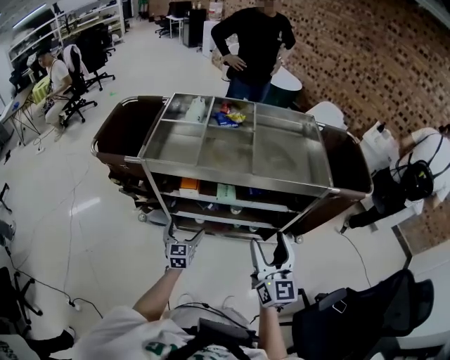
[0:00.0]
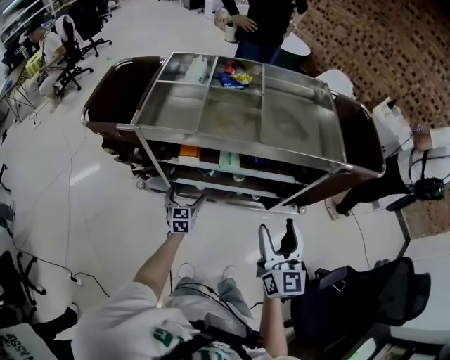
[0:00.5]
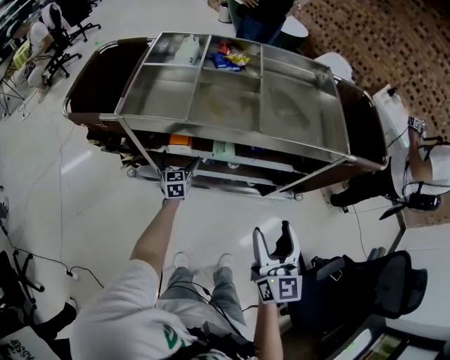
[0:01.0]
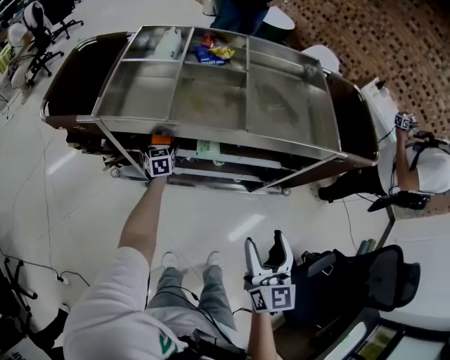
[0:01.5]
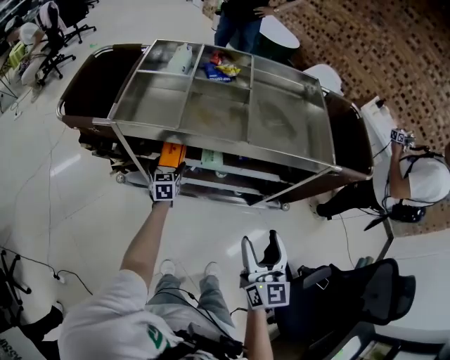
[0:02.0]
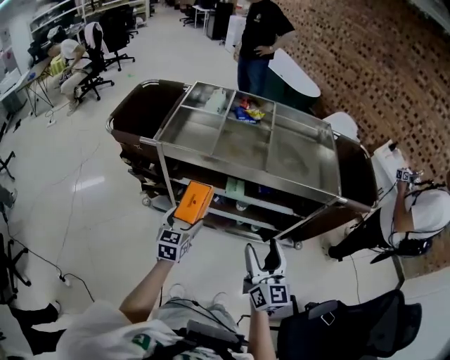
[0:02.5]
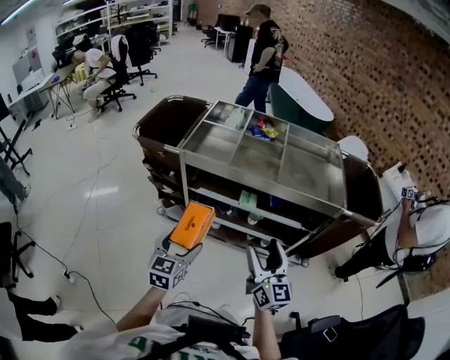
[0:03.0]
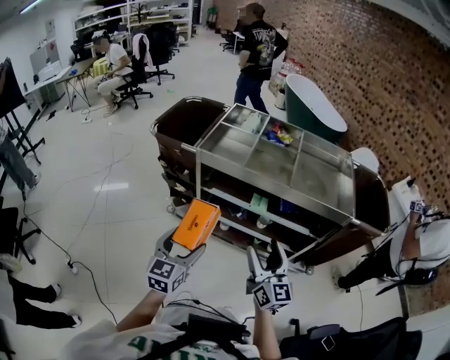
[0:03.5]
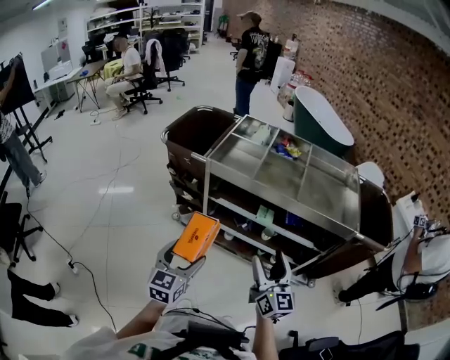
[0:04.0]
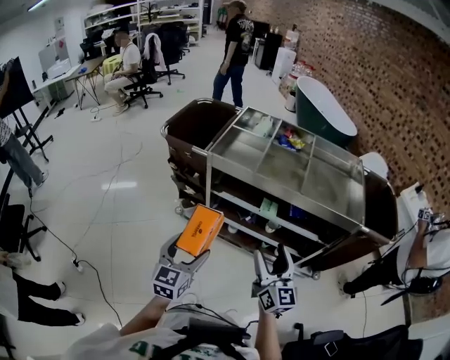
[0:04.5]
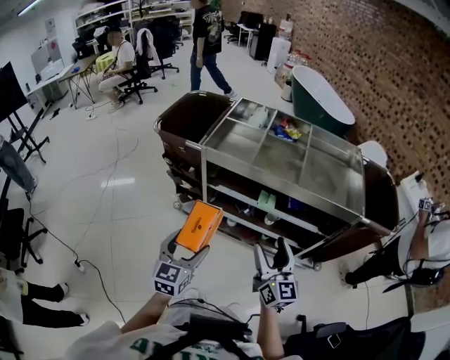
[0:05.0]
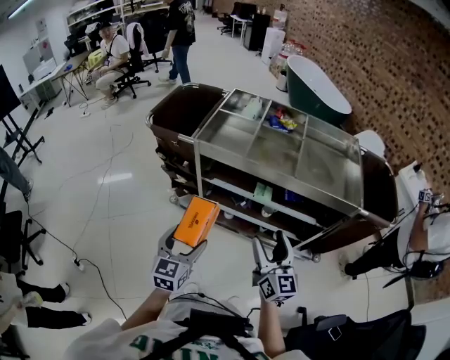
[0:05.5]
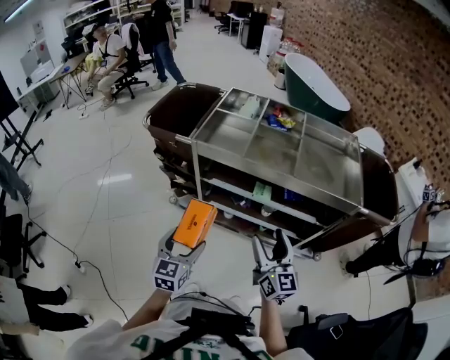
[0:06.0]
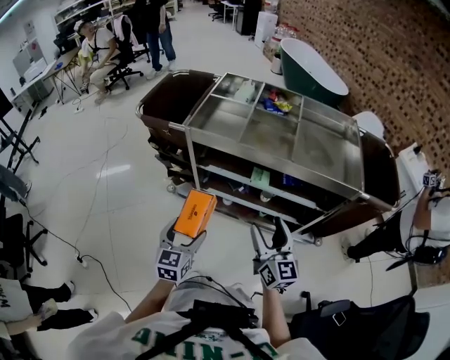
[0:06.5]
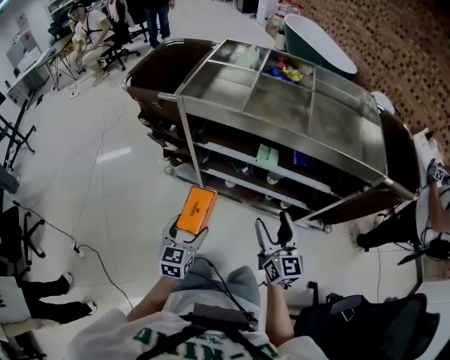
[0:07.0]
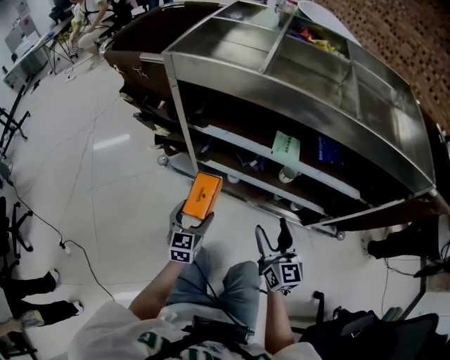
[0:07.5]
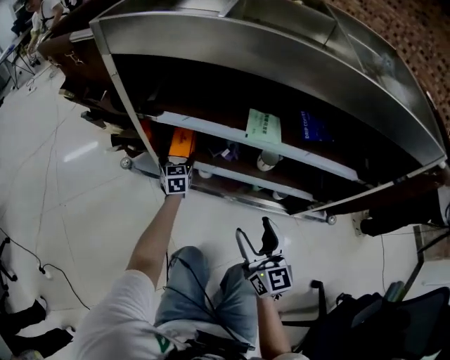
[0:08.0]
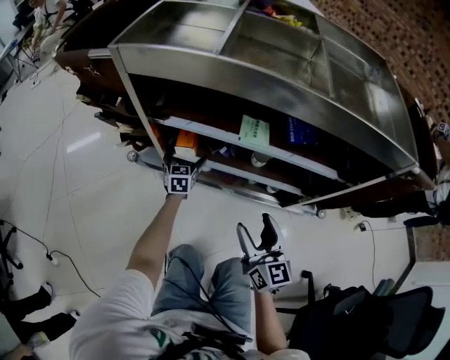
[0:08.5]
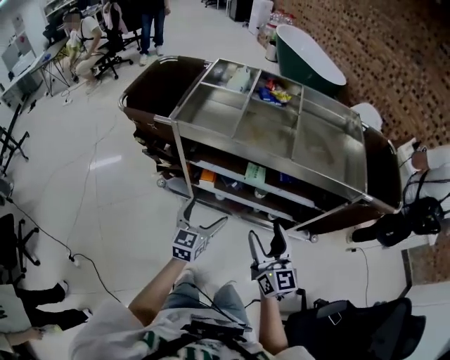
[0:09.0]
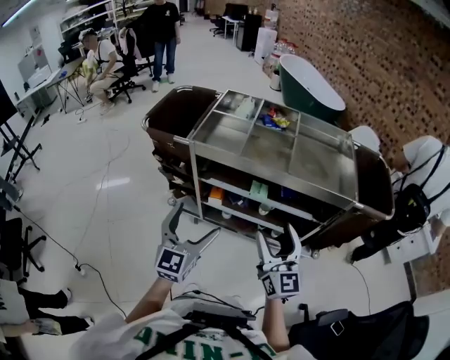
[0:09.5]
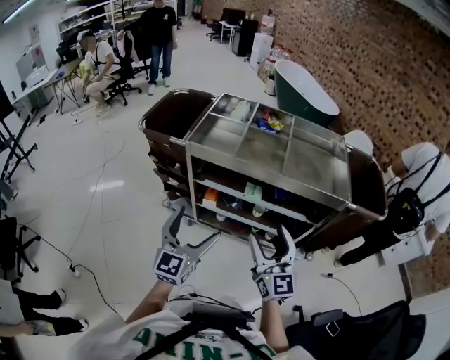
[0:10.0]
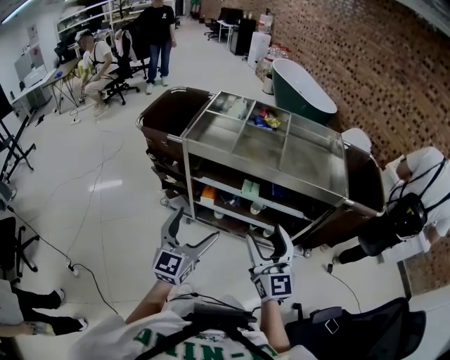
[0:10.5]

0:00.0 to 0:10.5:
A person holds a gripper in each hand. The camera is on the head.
0:00.0 to 0:02.0: The left gripper goes approximately 15 cm forward. The right gripper goes about 5 cm downward.
0:02.0 to 0:04.0: The right gripper travels to the left and upward by approximately 15 cm, and swivels some 20 degrees, while the left gripper moves backward and upward, some 40 cm.
0:04.0 to 0:06.5: The right gripper shifts by about 5 cm. The left gripper travels downward by roughly 5 cm.
0:06.5 to 0:08.5: The left gripper travels downward and forward by roughly 50 cm. The right gripper heads downward, covering some 30 cm.
0:08.5 to 0:10.5: The left gripper shifts about 60 cm upward and backward, and swivels approximately 30 degrees, while the right gripper moves upward, approximately 40 cm, and swivels roughly 20 degrees.

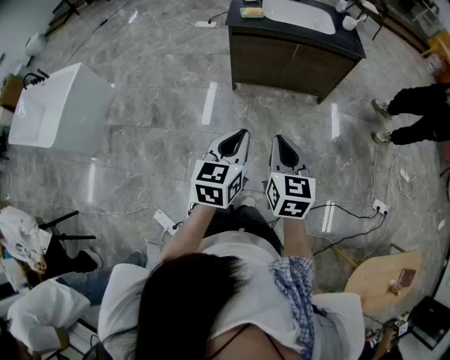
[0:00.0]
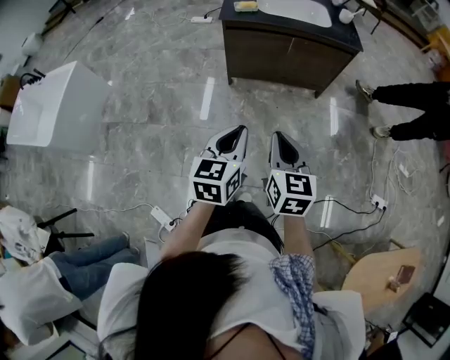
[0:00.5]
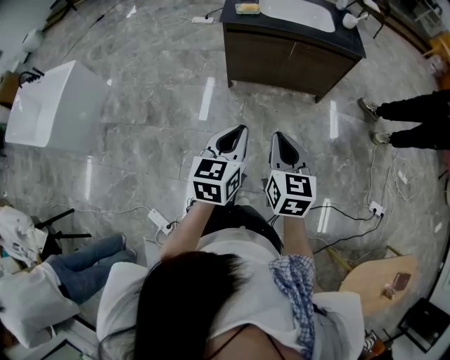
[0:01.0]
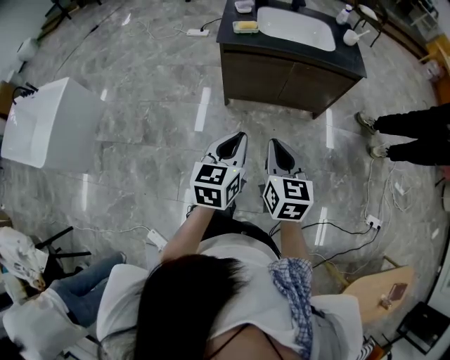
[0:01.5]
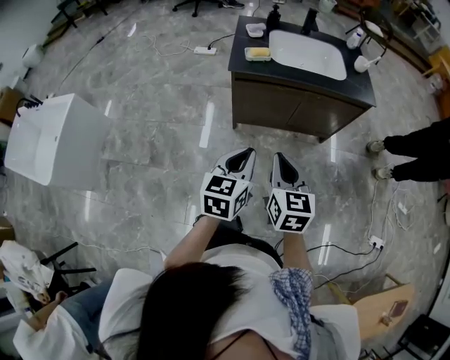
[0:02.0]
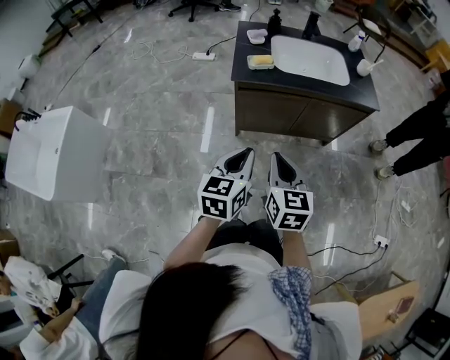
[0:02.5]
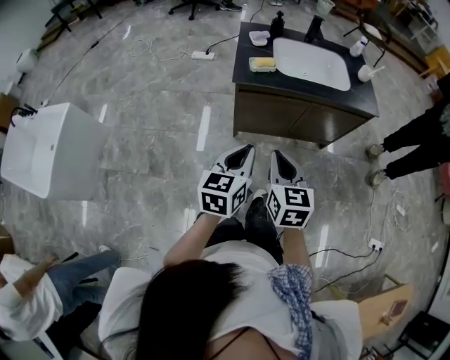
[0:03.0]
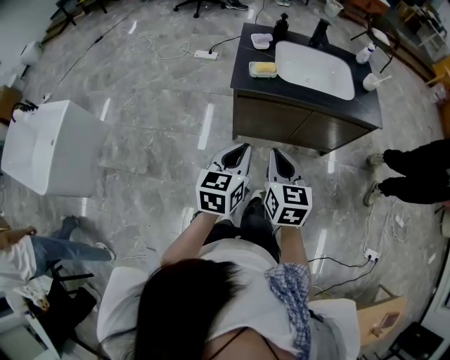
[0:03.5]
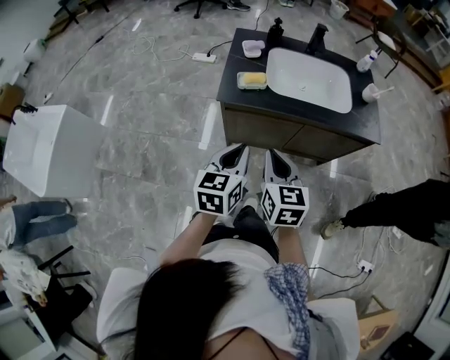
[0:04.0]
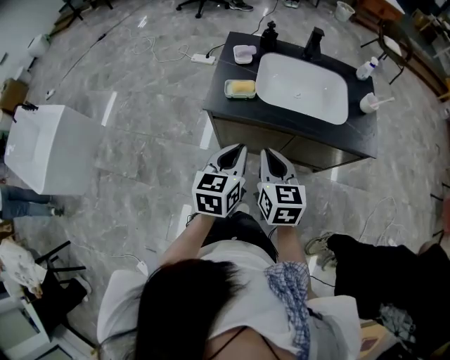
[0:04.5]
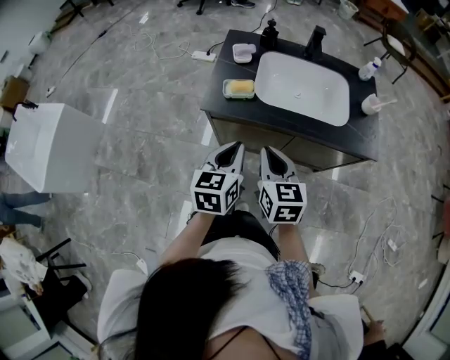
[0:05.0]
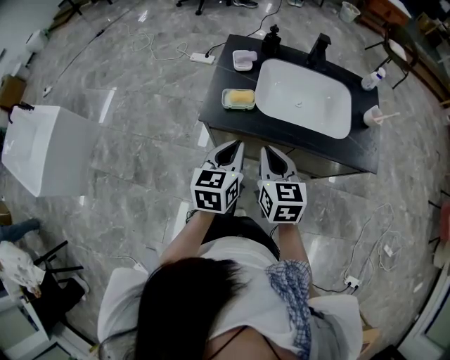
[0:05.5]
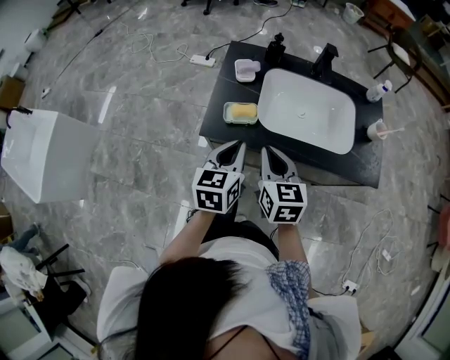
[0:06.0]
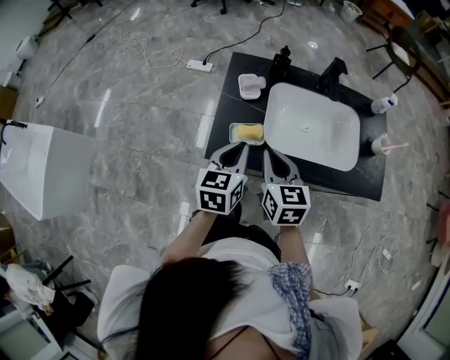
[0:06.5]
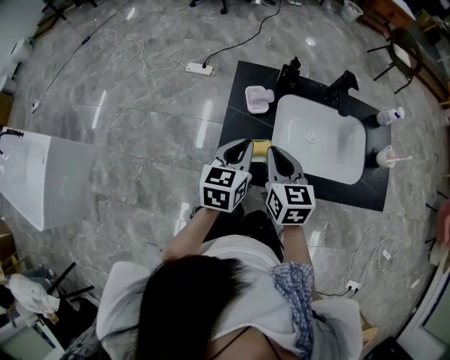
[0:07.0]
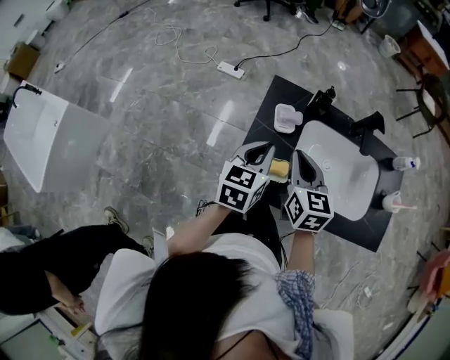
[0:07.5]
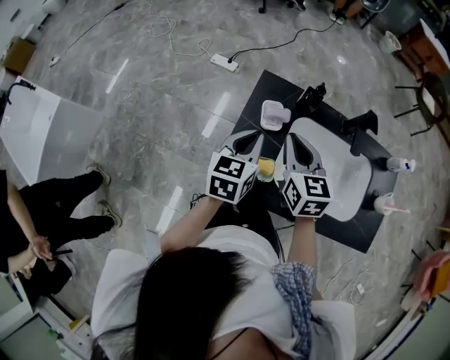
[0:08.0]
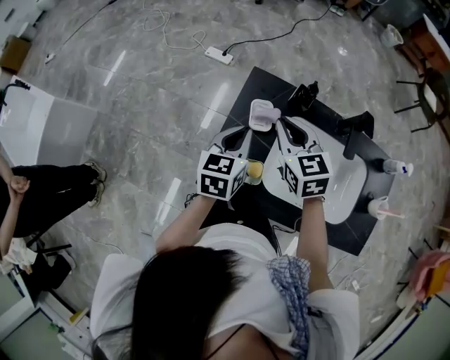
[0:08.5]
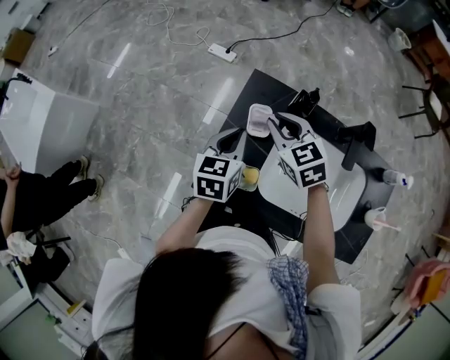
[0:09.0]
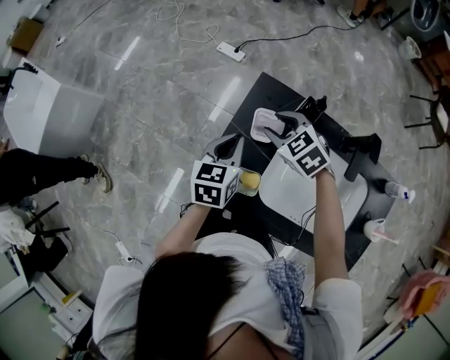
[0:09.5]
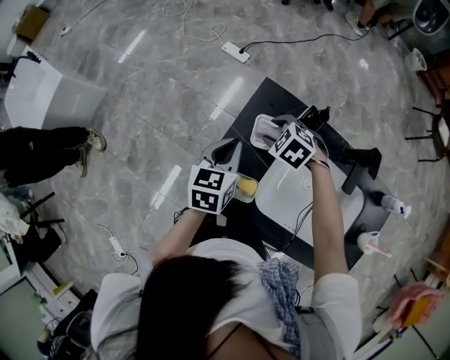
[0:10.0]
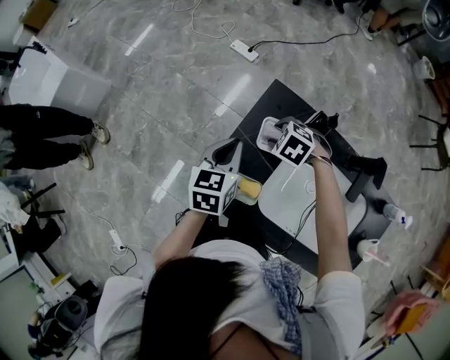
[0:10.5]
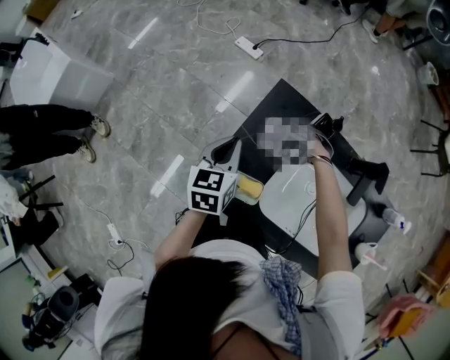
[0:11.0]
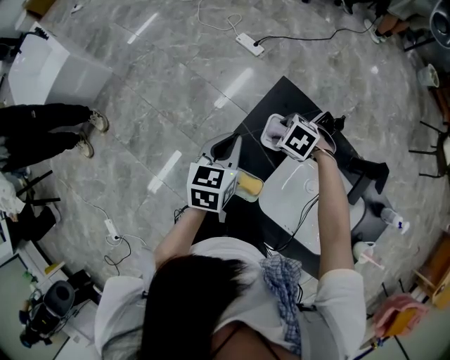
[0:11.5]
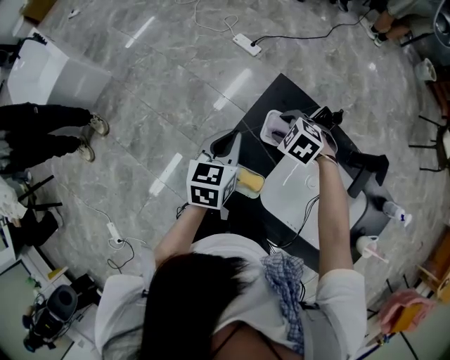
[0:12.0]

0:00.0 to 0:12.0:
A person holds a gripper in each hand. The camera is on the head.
0:00.0 to 0:02.0: The two grippers go some 25 cm forward.
0:02.0 to 0:04.0: Both grippers move forward, roughly 20 cm.
0:04.0 to 0:06.0: The grippers both shift forward by approximately 20 cm.
0:06.0 to 0:08.0: Both grippers travel together forward, roughly 25 cm.
0:08.0 to 0:10.0: The left gripper goes approximately 5 cm downward. Meanwhile the right gripper heads downward, covering about 15 cm, tips its fingers downward by approximately 40 degrees, and opens up.
0:10.0 to 0:12.0: The grippers move only a little.

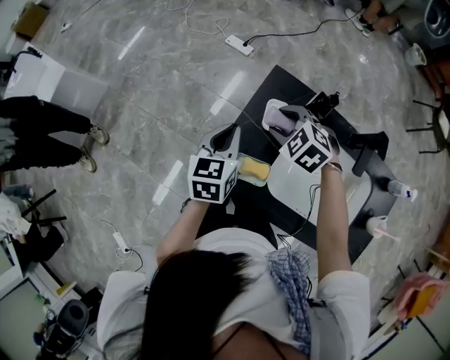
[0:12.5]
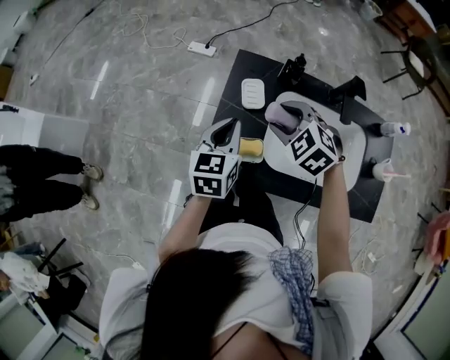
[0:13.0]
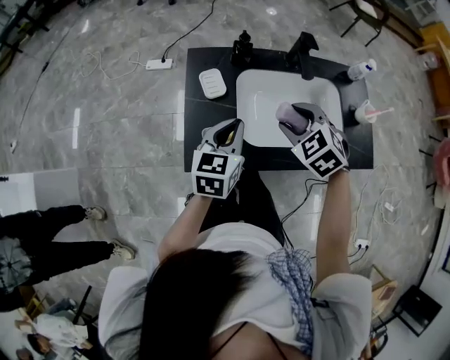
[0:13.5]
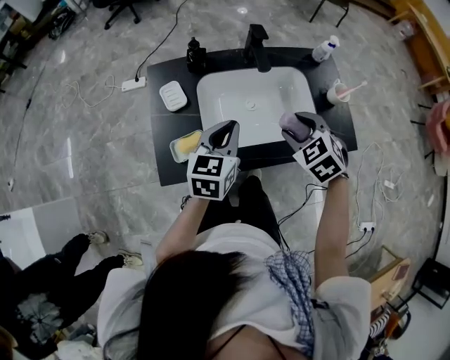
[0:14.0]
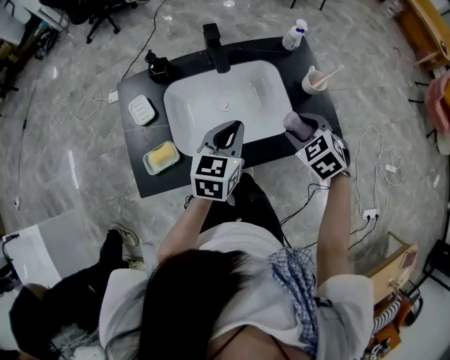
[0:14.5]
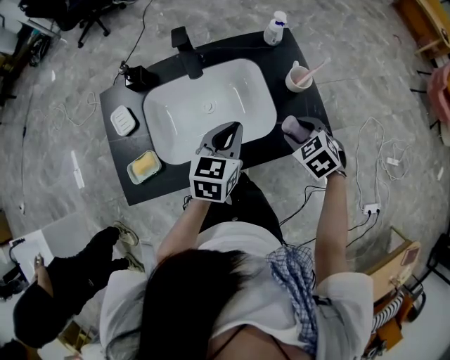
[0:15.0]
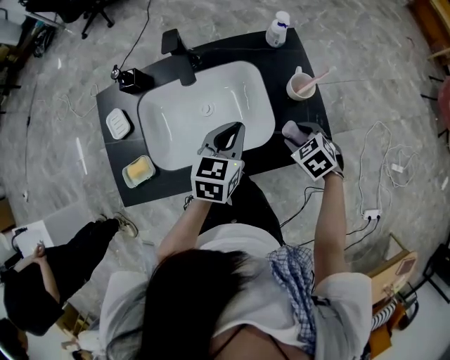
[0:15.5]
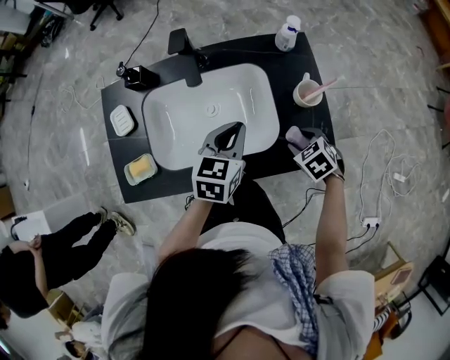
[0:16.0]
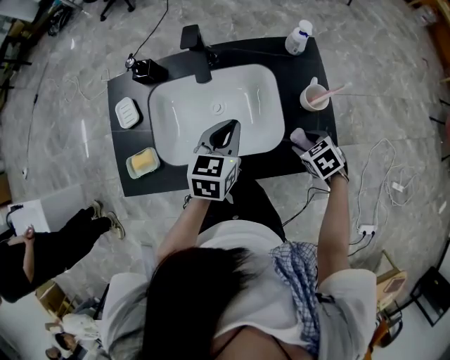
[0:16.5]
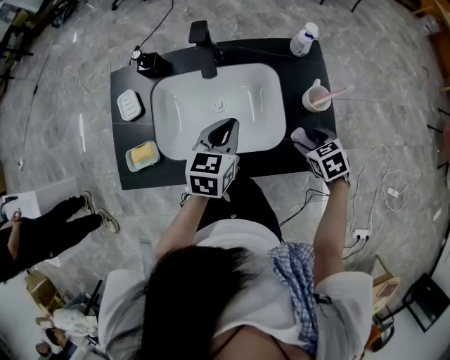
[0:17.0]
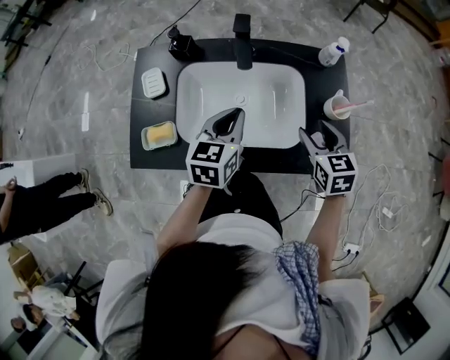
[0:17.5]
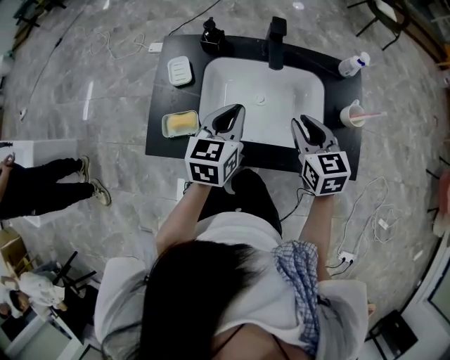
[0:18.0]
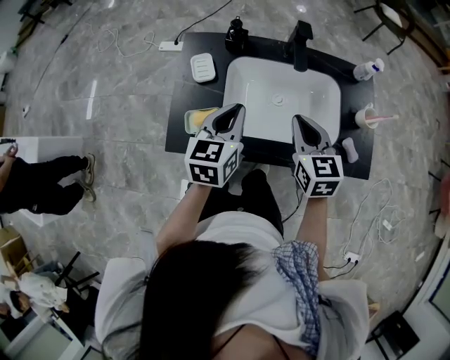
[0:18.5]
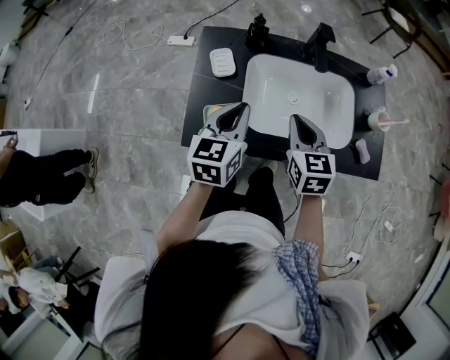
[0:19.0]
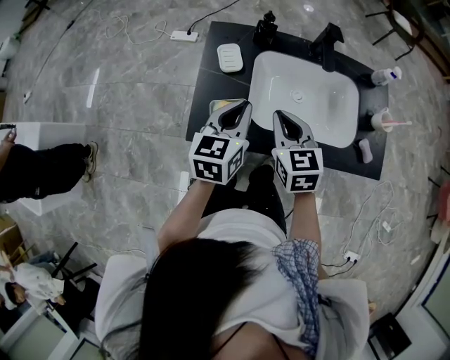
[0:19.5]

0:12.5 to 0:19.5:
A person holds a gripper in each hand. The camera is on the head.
0:12.5 to 0:14.5: The left gripper moves roughly 40 cm, and turns by roughly 50 degrees, while the right gripper ends up approximately 50 cm from where it was, and changes its angle by about 60 degrees.
0:14.5 to 0:16.0: The right gripper is displaced downward and to the right by roughly 20 cm. The left gripper heads to the right and forward, covering roughly 10 cm.
0:16.0 to 0:17.5: The left gripper heads to the left, covering roughly 10 cm. Meanwhile the right gripper travels upward and to the left by about 15 cm, and rotates roughly 30 degrees.
0:17.5 to 0:19.5: The left gripper goes some 25 cm to the left. The right gripper is displaced to the left by about 35 cm, and closes its fingers.
